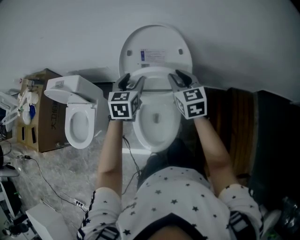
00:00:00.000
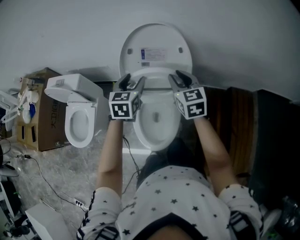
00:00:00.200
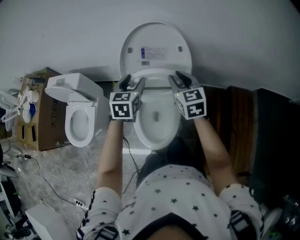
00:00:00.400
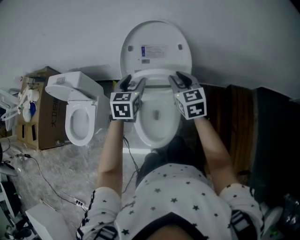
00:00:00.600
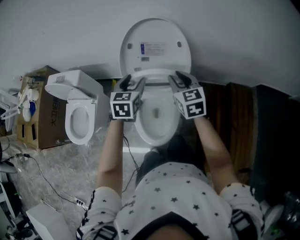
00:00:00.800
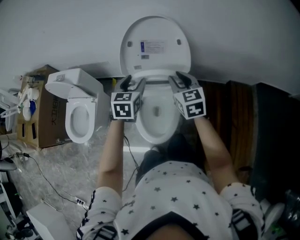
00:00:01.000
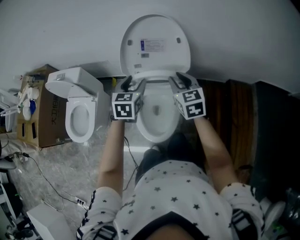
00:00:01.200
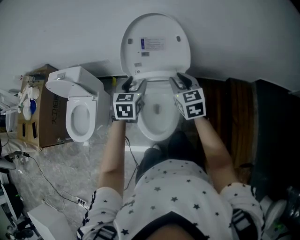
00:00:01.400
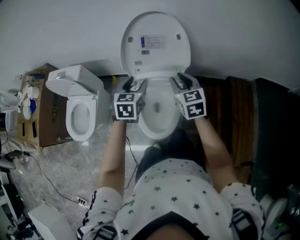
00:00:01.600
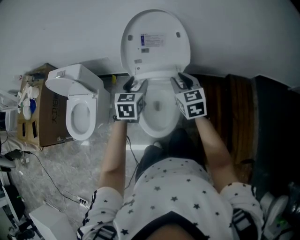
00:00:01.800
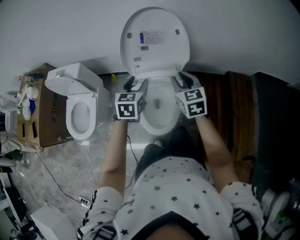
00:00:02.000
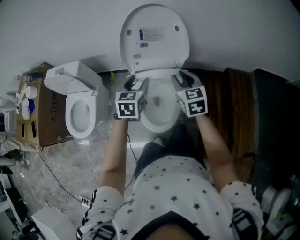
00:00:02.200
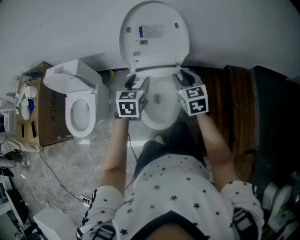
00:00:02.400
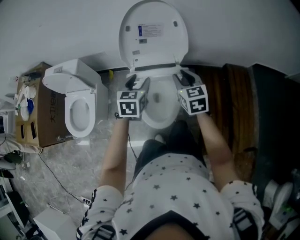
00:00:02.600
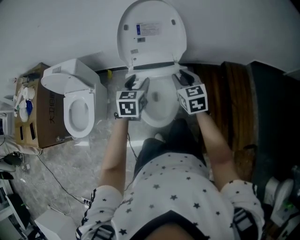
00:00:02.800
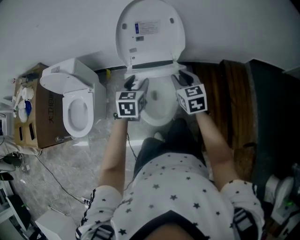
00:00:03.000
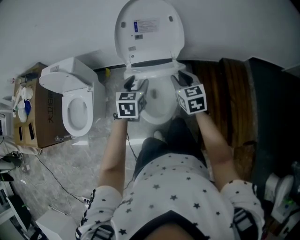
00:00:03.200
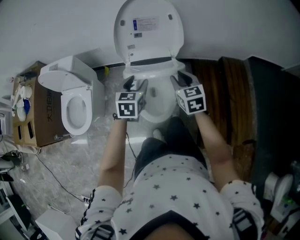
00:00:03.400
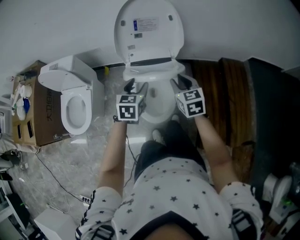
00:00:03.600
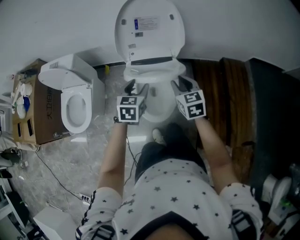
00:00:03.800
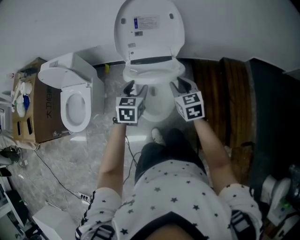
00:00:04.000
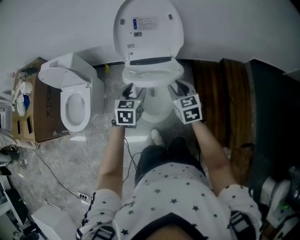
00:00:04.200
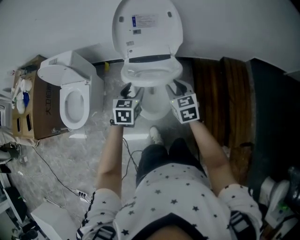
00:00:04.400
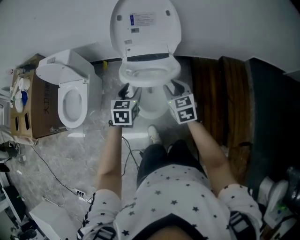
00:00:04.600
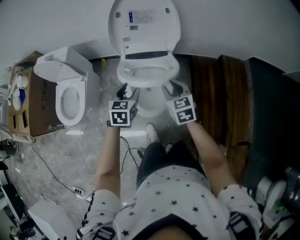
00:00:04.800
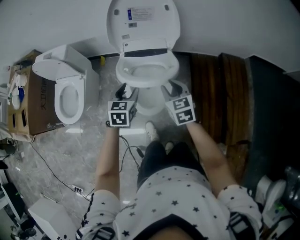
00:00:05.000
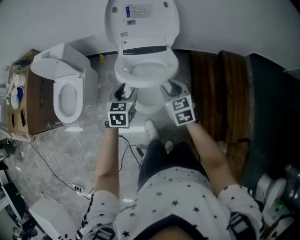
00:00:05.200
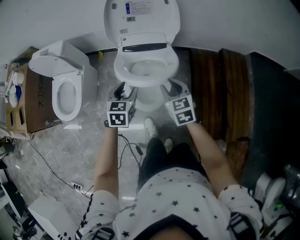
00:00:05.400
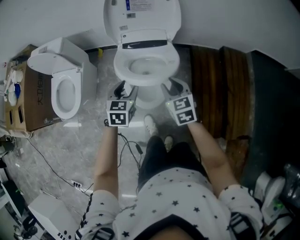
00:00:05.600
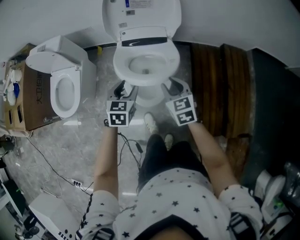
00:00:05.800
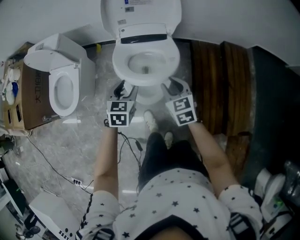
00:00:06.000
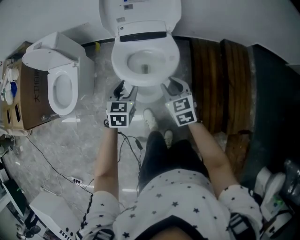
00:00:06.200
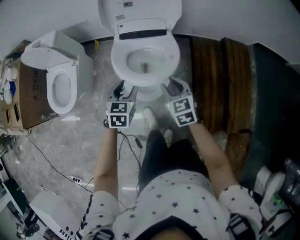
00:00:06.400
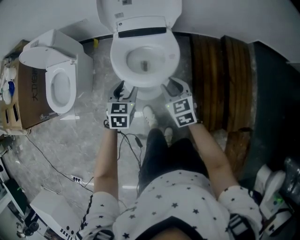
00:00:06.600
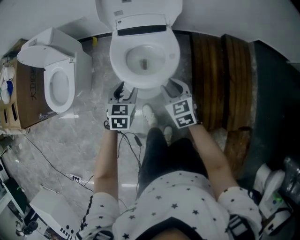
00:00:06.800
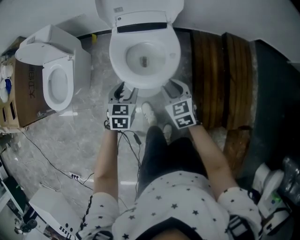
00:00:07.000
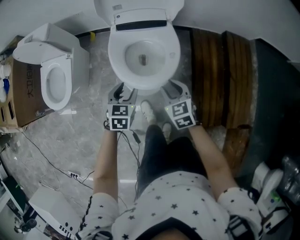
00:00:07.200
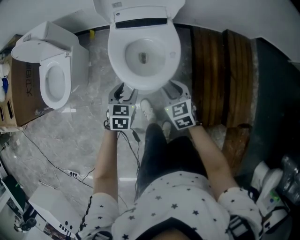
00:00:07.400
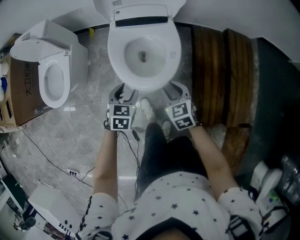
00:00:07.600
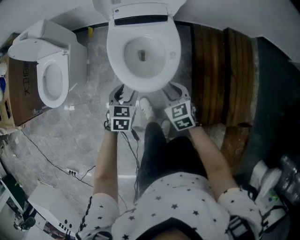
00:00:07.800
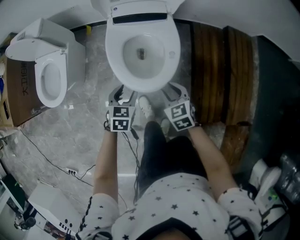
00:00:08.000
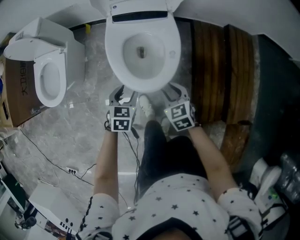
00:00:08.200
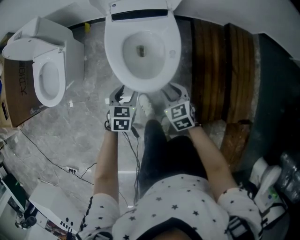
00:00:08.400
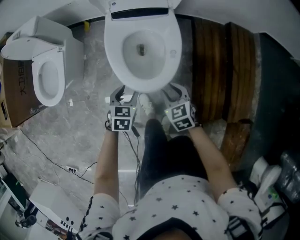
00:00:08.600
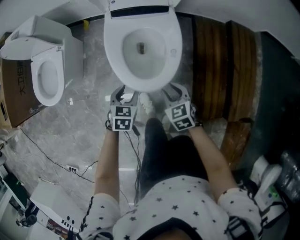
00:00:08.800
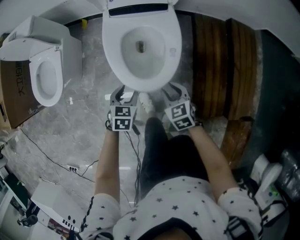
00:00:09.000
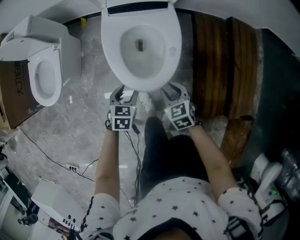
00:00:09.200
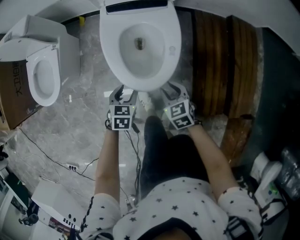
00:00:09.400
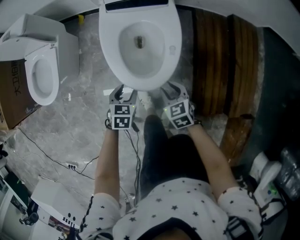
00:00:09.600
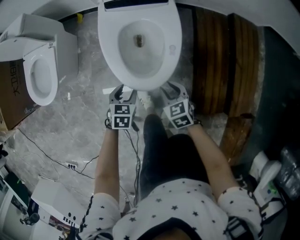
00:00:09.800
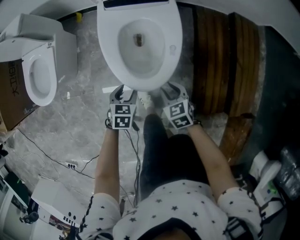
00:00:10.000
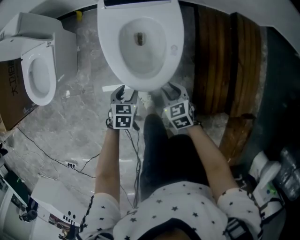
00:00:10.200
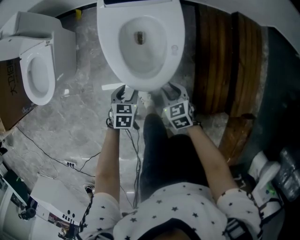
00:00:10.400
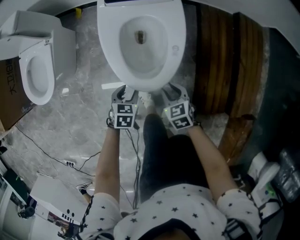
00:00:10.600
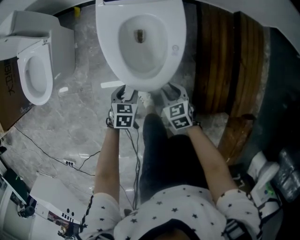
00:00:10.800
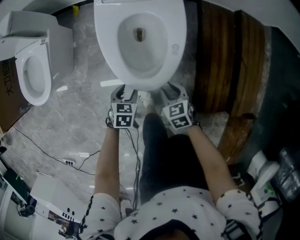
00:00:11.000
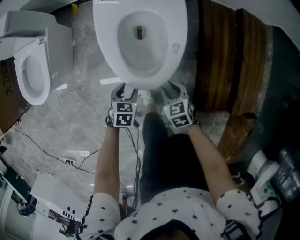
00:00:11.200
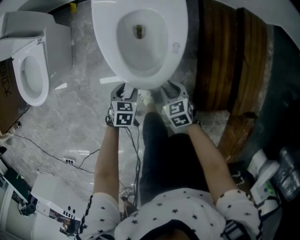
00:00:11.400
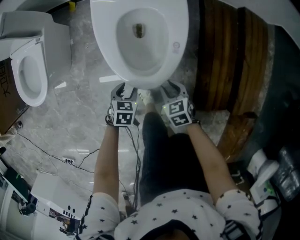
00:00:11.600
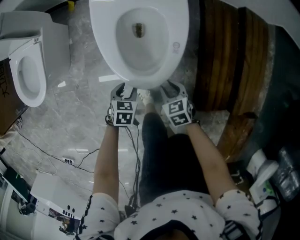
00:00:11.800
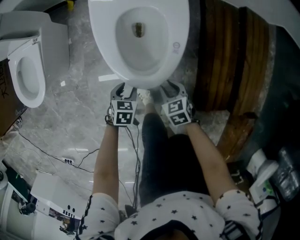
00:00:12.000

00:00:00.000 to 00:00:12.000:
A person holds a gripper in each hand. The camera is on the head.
00:00:00.000 to 00:00:01.600: Both grippers travel together backward, approximately 10 cm.
00:00:01.600 to 00:00:03.000: Both grippers travel together backward, approximately 5 cm.
00:00:03.000 to 00:00:04.400: The two grippers go approximately 5 cm backward.
00:00:04.400 to 00:00:06.000: The two grippers go some 10 cm downward and backward.
00:00:06.000 to 00:00:07.600: The grippers both shift downward and backward by about 10 cm.
00:00:07.600 to 00:00:09.000: Both grippers travel together downward, roughly 5 cm.
00:00:09.000 to 00:00:10.400: Both grippers move downward, roughly 10 cm.
00:00:10.400 to 00:00:12.000: The grippers both shift downward by roughly 10 cm.

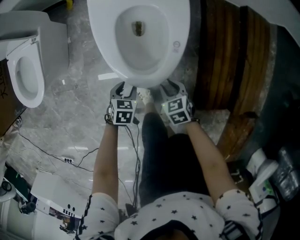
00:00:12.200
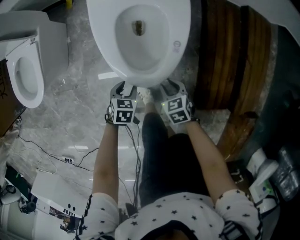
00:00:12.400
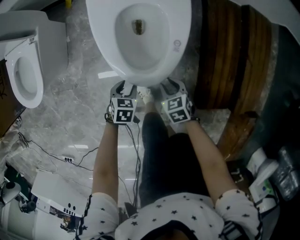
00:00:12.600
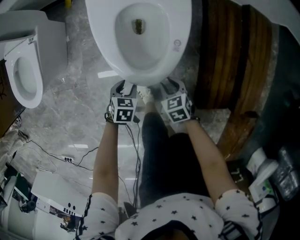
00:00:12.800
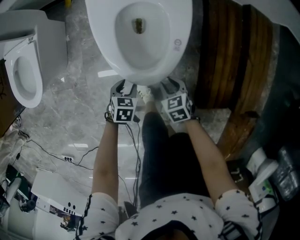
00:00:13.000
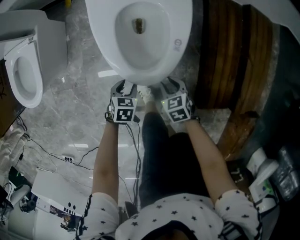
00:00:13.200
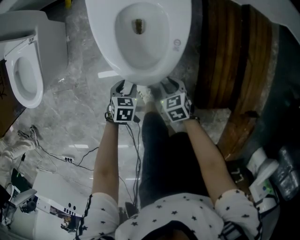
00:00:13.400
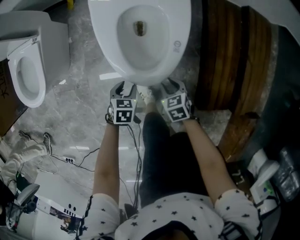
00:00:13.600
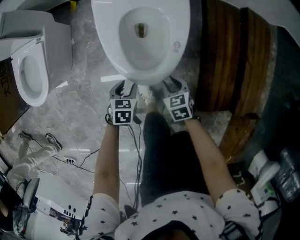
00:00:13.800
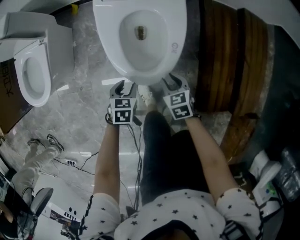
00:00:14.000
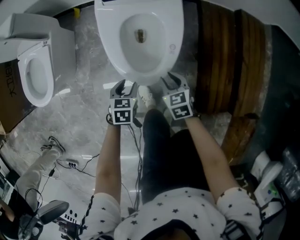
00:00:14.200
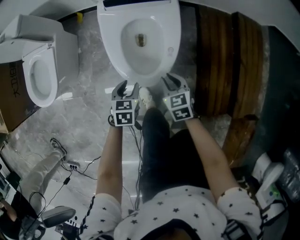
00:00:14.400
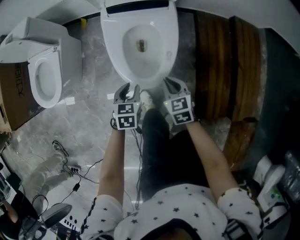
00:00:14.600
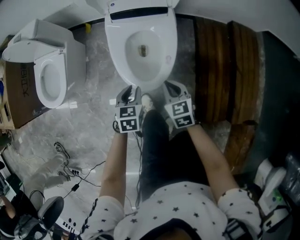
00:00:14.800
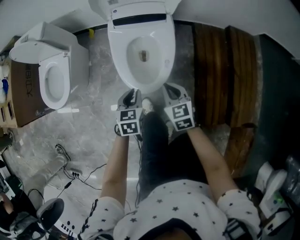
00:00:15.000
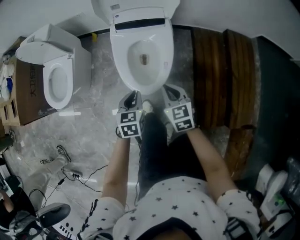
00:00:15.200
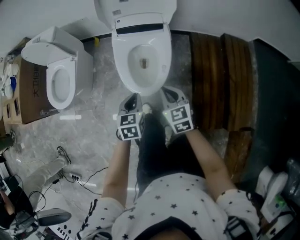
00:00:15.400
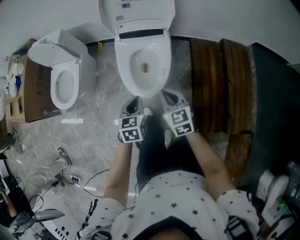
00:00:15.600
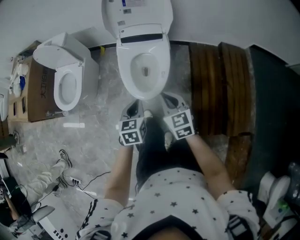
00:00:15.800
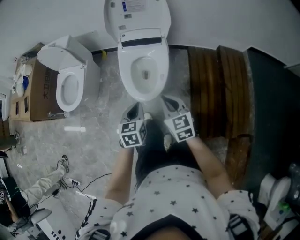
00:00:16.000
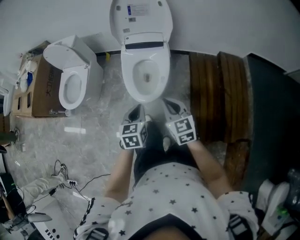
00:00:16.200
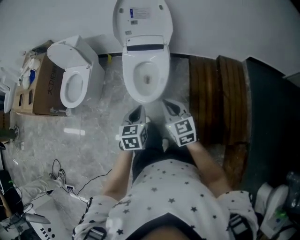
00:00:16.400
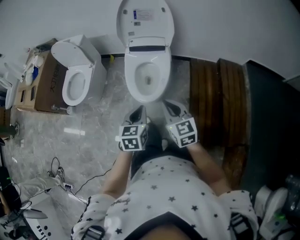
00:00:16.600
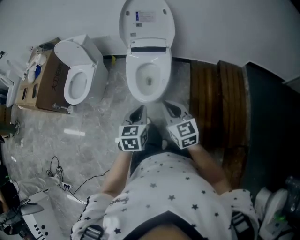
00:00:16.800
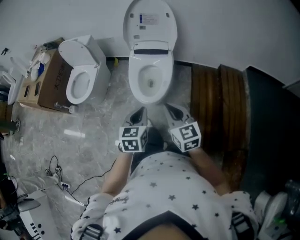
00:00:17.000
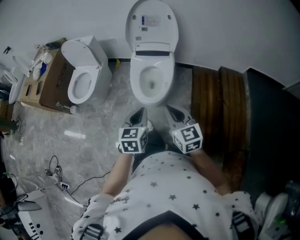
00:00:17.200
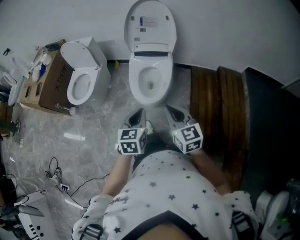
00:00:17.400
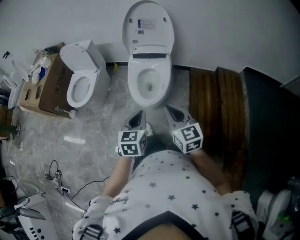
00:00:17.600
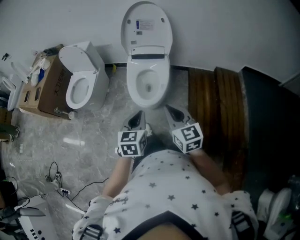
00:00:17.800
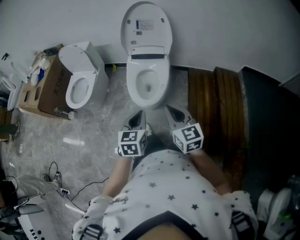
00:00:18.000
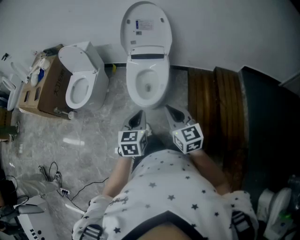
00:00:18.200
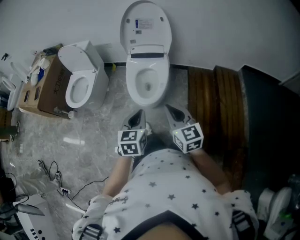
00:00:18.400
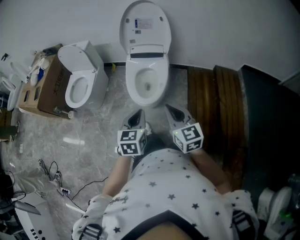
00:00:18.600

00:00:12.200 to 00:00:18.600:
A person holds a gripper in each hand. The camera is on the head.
00:00:12.200 to 00:00:13.800: The grippers stay close to where they were, moving slightly.
00:00:13.800 to 00:00:15.400: The grippers both shift upward by about 30 cm. The right gripper changes its angle by approximately 30 degrees, and closes up, while the left gripper turns by about 30 degrees, and closes its fingers.
00:00:15.400 to 00:00:17.000: The grippers both shift upward and backward by about 25 cm.
00:00:17.000 to 00:00:18.600: The grippers make only small movements.

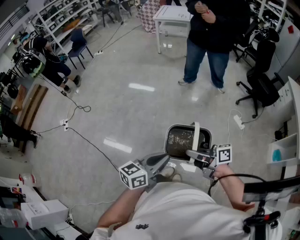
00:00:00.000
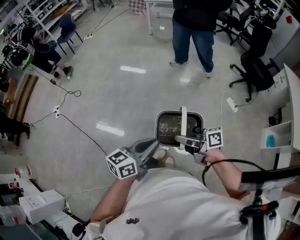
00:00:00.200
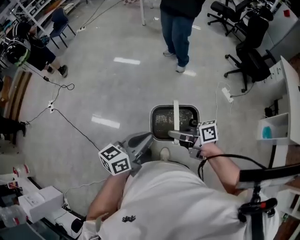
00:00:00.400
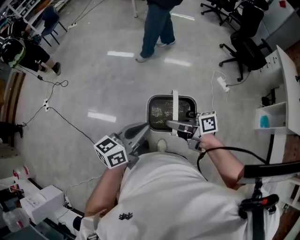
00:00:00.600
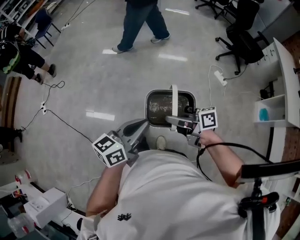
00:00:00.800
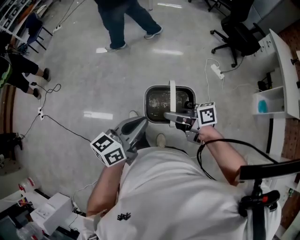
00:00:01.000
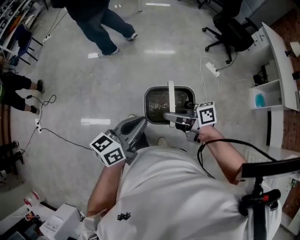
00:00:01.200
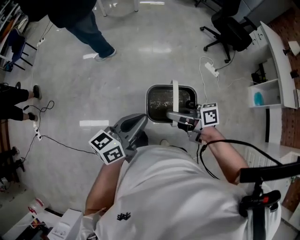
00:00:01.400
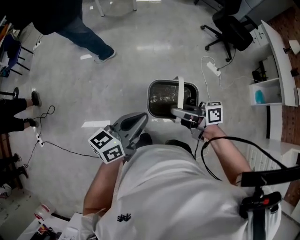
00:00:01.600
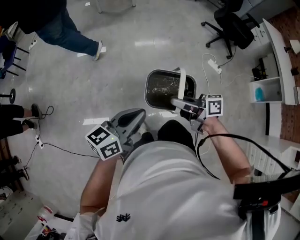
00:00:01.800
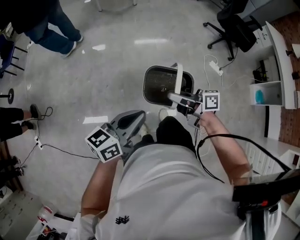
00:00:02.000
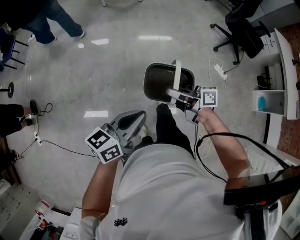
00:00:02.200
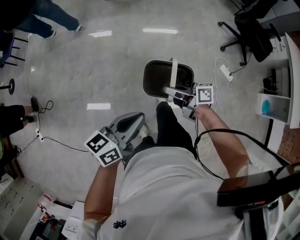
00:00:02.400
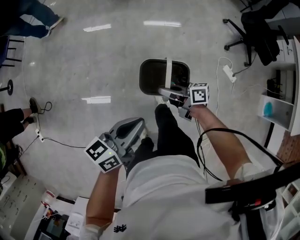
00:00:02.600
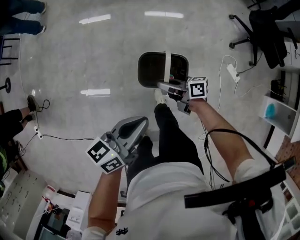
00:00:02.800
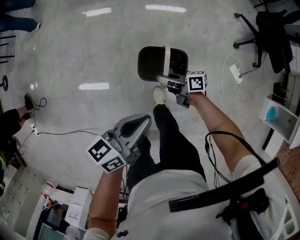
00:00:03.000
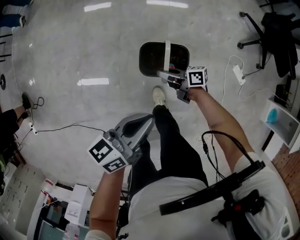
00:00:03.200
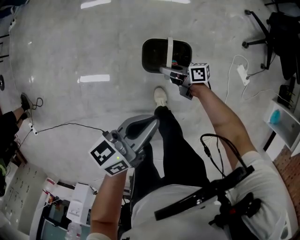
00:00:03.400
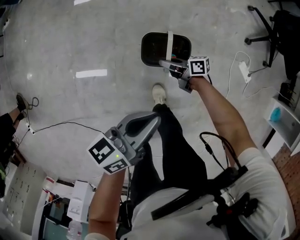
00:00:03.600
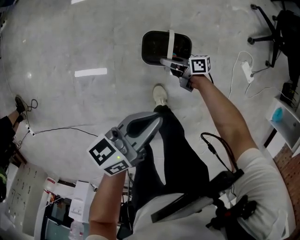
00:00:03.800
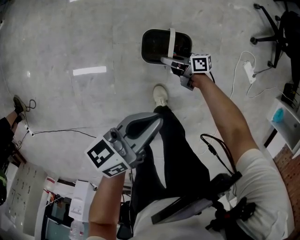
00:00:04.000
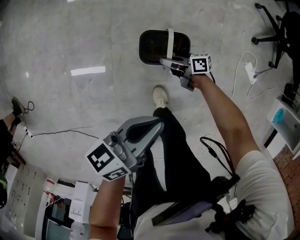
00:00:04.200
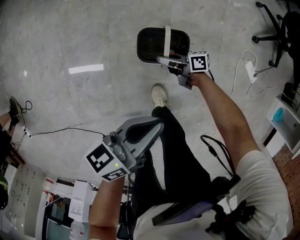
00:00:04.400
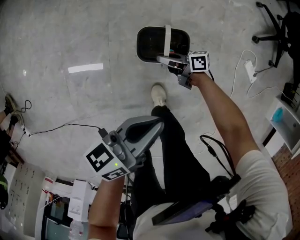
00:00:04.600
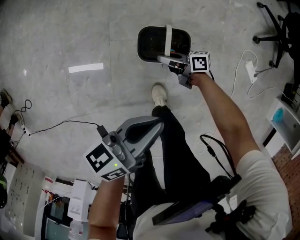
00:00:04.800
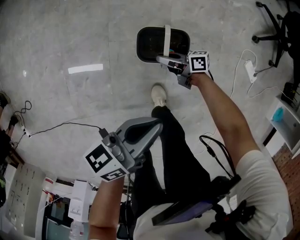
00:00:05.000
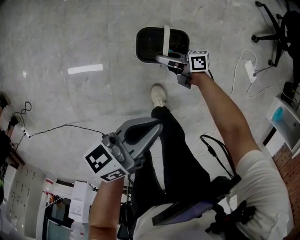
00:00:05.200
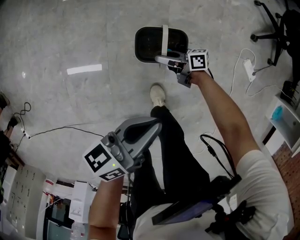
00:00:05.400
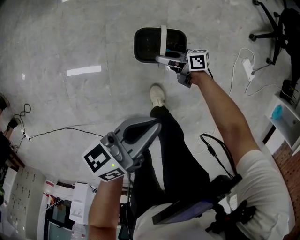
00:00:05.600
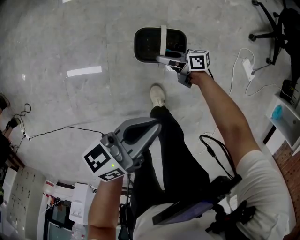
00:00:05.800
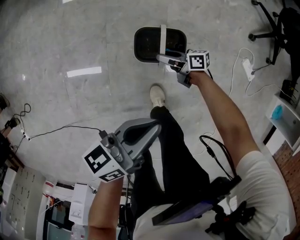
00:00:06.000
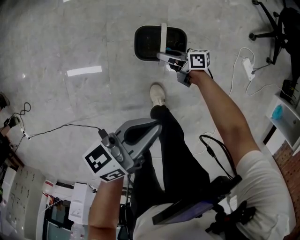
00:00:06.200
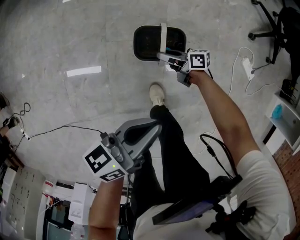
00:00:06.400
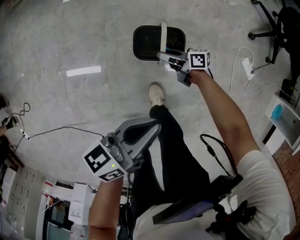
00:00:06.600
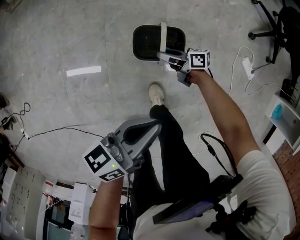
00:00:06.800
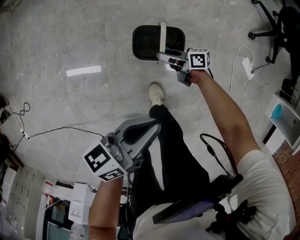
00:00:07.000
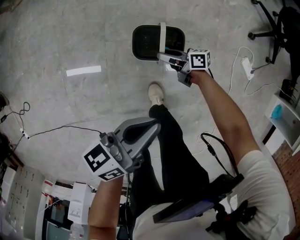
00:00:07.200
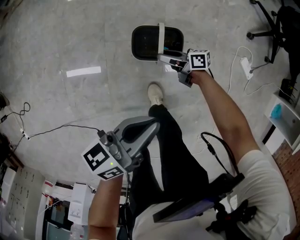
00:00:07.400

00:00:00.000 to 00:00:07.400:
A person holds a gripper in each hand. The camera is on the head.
00:00:00.000 to 00:00:01.400: The two grippers go approximately 15 cm forward.
00:00:01.400 to 00:00:03.000: Both grippers are carried forward, about 50 cm. The right gripper shifts approximately 30 cm downward.
00:00:03.000 to 00:00:04.400: The two grippers go roughly 20 cm downward.
00:00:04.400 to 00:00:06.000: The right gripper opens.
00:00:06.000 to 00:00:07.400: The grippers move only a little.
